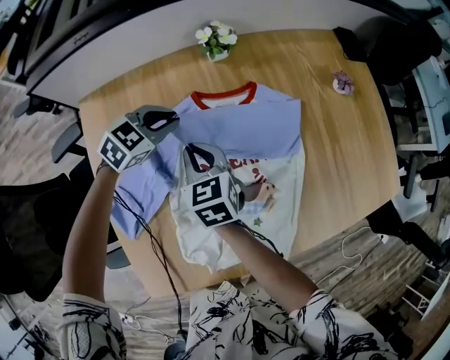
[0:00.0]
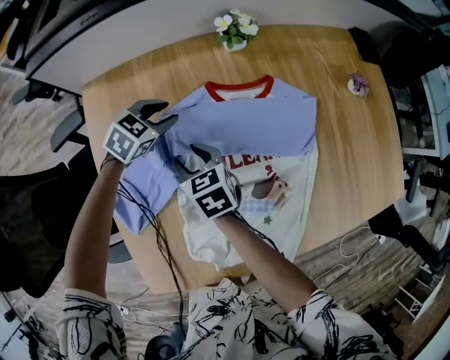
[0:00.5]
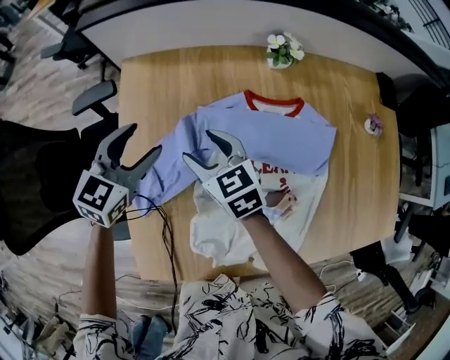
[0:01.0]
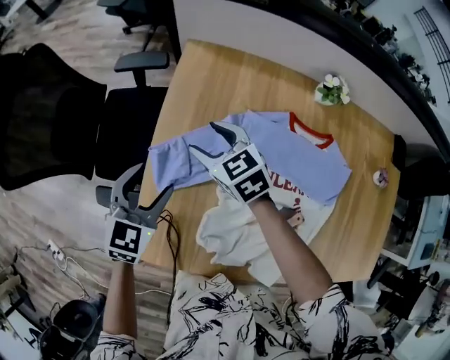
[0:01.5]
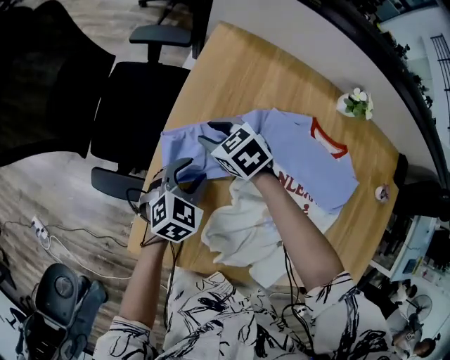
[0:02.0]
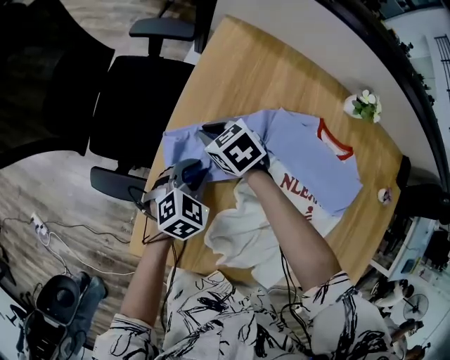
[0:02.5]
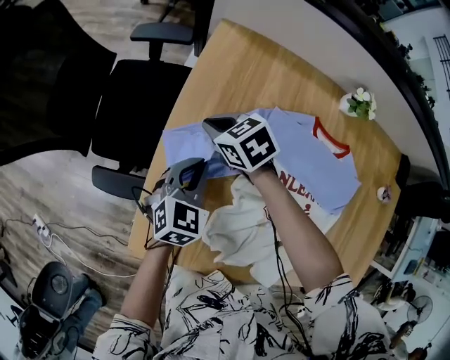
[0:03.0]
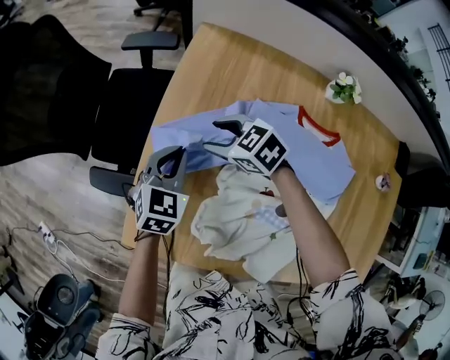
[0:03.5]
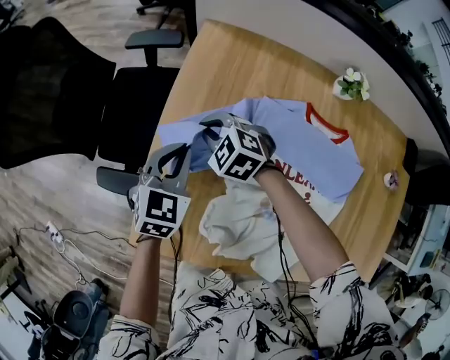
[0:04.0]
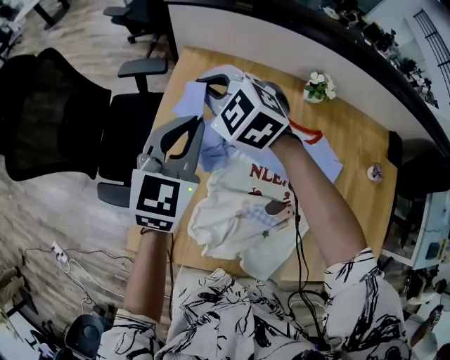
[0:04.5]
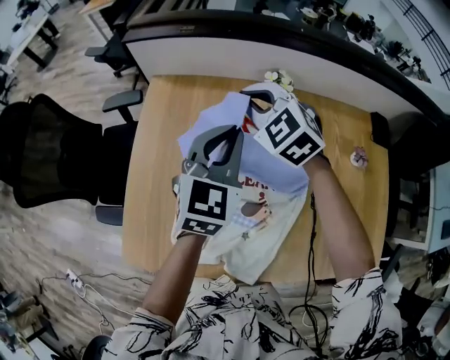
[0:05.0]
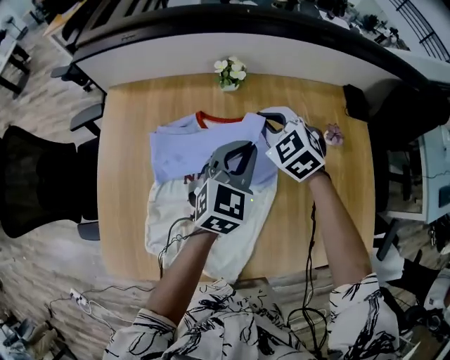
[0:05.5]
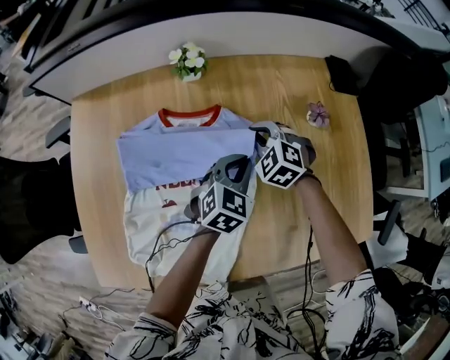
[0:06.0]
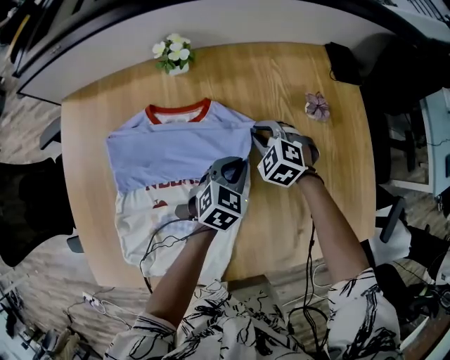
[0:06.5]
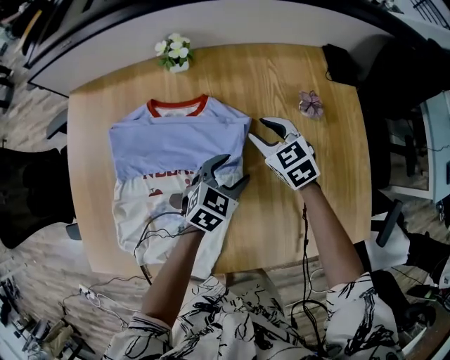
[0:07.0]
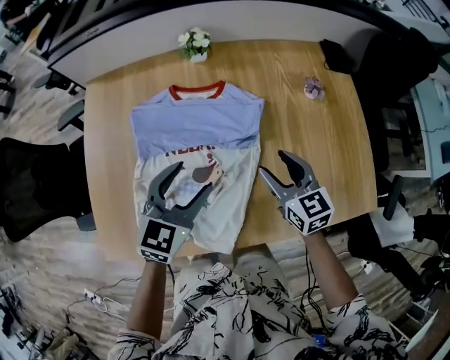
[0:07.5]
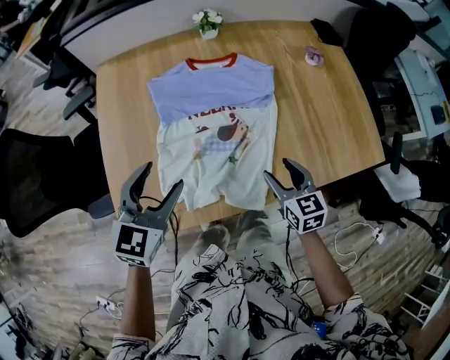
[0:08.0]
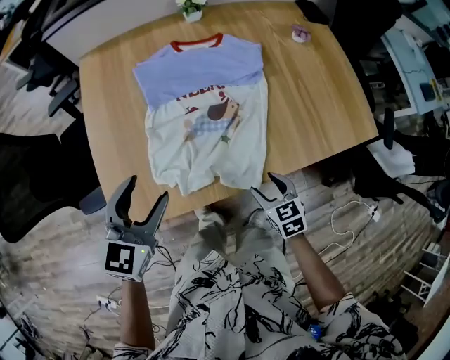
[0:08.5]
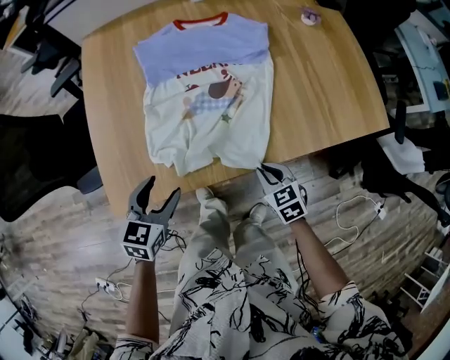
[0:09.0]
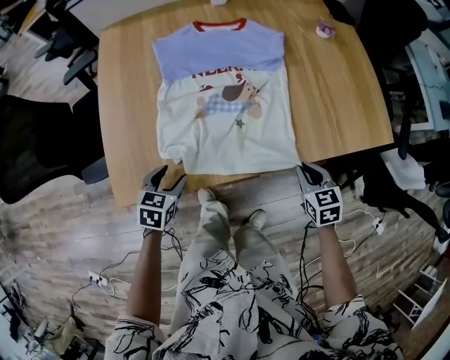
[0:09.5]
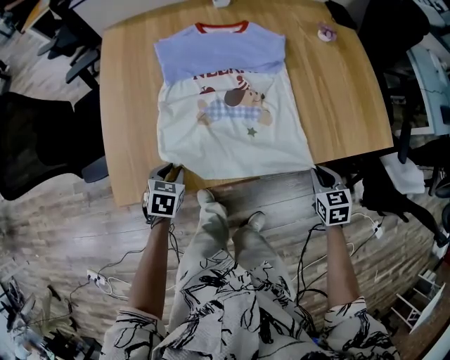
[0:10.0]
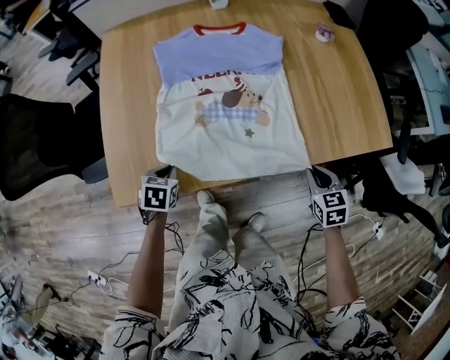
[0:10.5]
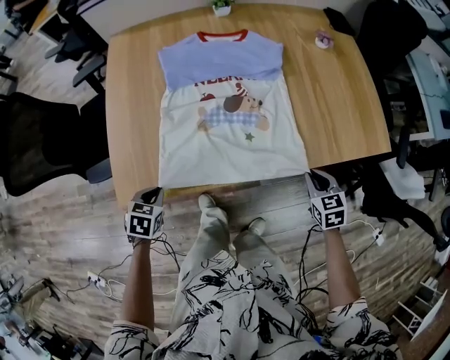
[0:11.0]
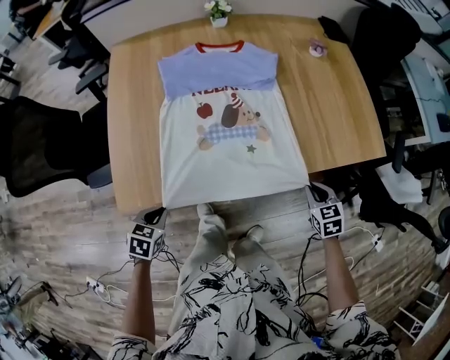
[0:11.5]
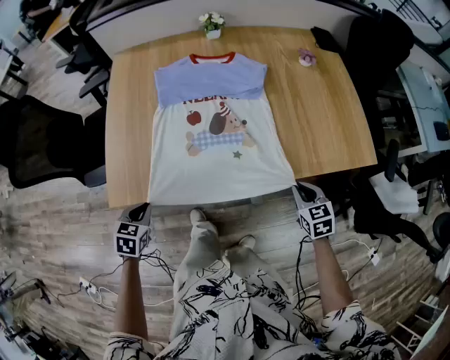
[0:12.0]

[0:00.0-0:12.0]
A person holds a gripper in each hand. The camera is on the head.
0:00.0 to 0:02.0: The left gripper swings up and down, roughly 15 cm each way, with 2 reversals, and turns by approximately 50 degrees. Meanwhile the right gripper goes up and down, about 10 cm each way, reversing 2 times, and changes its angle by some 60 degrees.
0:02.0 to 0:04.0: The left gripper shifts roughly 10 cm upward, and closes its fingers; the right gripper swivels approximately 30 degrees.
0:04.0 to 0:06.0: The two grippers travel together, roughly 60 cm. The left gripper changes its angle by some 30 degrees; the right gripper swivels roughly 30 degrees.
0:06.0 to 0:08.0: The left gripper heads to the left, backward and upward, covering roughly 40 cm, and opens, while the right gripper travels backward by some 35 cm, twists approximately 50 degrees clockwise, seen from behind, and opens.
0:08.0 to 0:10.0: The right gripper shifts some 20 cm to the right, backward and downward, changes its angle by roughly 20 degrees, and closes up; the left gripper moves downward, approximately 25 cm, tips its fingers downward by roughly 30 degrees, and closes.
0:10.0 to 0:12.0: The left gripper goes some 15 cm backward and upward.

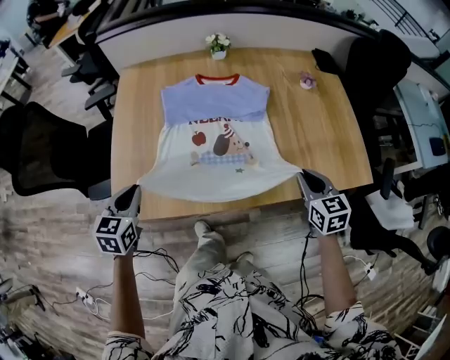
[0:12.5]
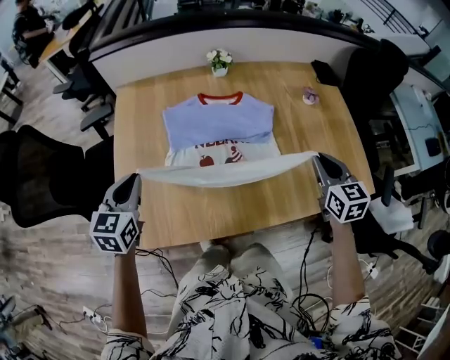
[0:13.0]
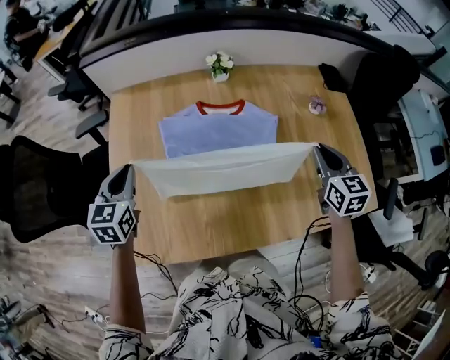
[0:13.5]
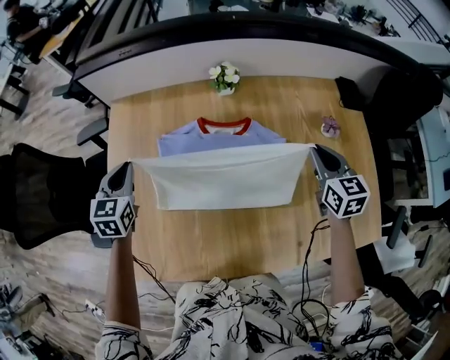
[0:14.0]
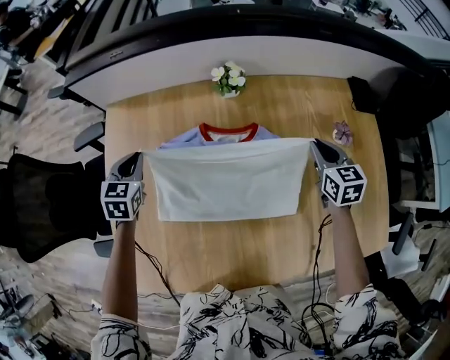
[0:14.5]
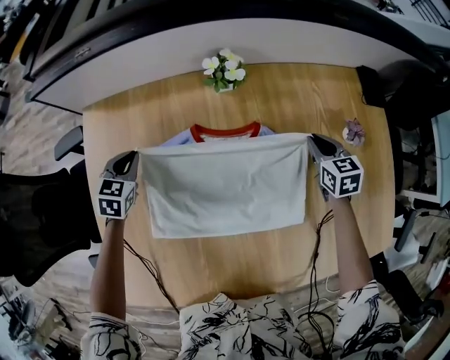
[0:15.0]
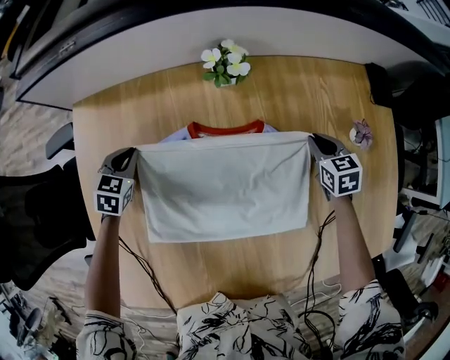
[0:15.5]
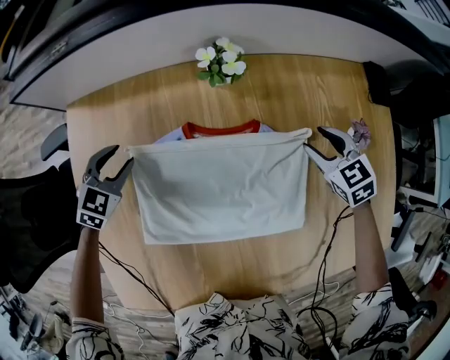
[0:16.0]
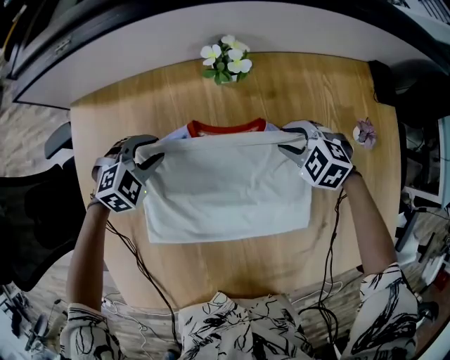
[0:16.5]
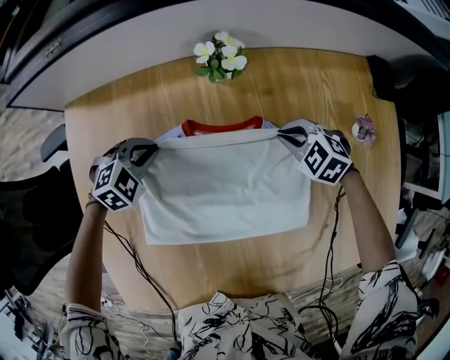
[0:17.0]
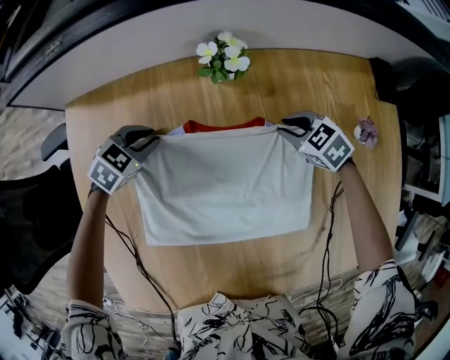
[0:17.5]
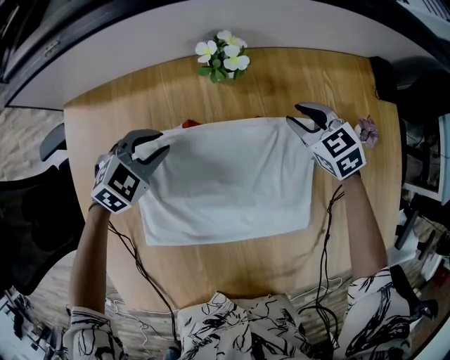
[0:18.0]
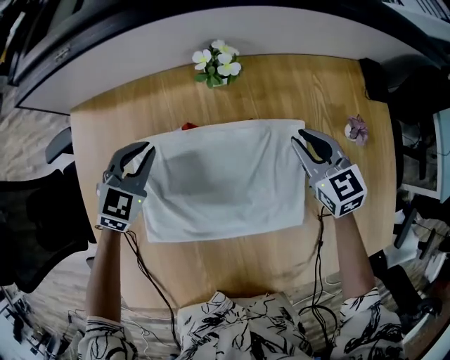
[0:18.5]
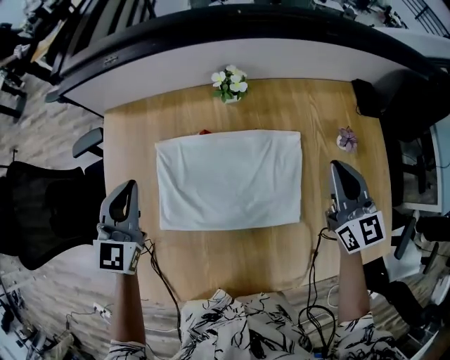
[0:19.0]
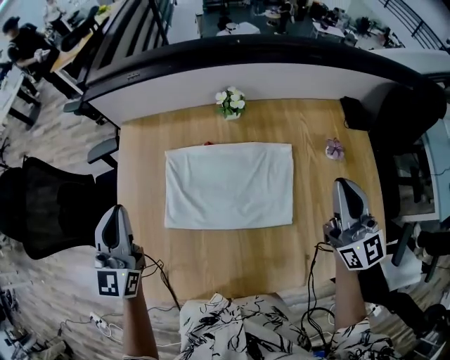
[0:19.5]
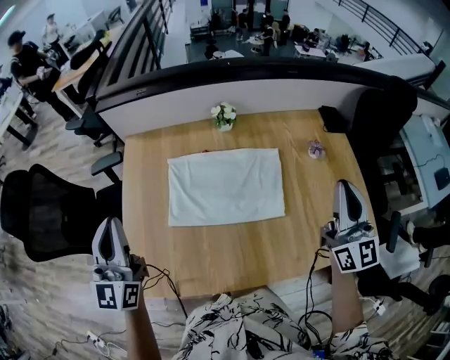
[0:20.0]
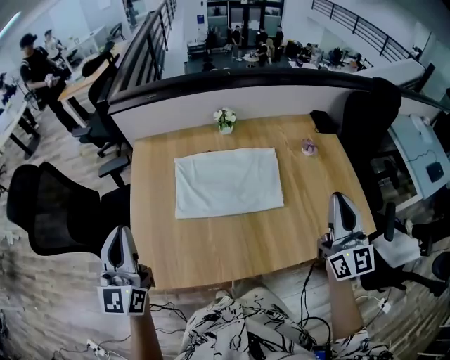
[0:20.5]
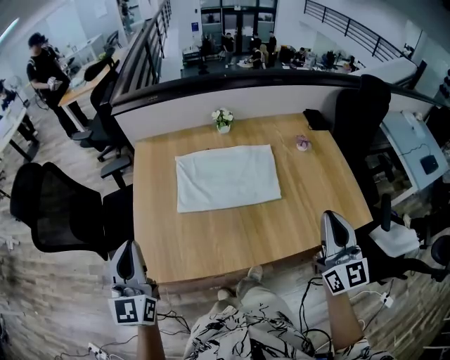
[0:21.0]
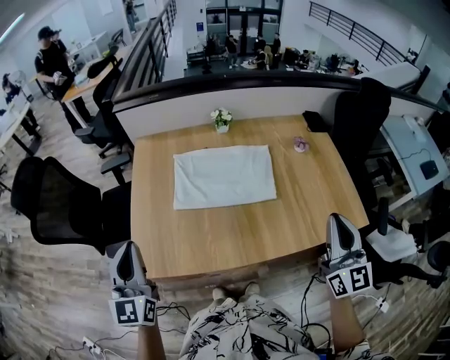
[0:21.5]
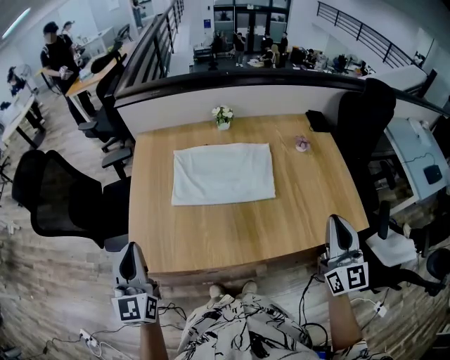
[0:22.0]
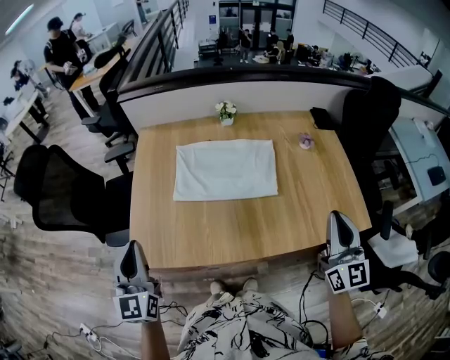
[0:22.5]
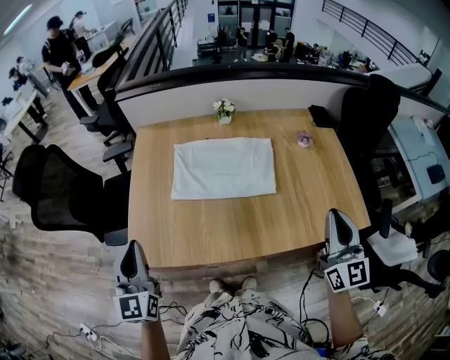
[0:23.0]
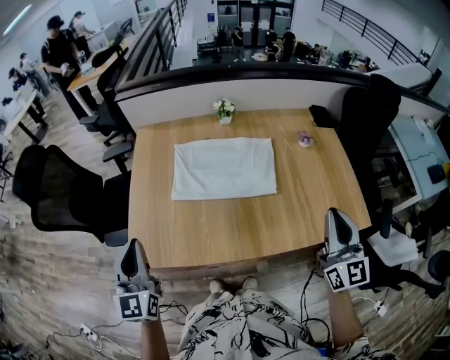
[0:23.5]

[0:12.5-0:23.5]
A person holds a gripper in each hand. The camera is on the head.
0:12.5 to 0:14.5: Both grippers are carried forward, approximately 40 cm.
0:14.5 to 0:16.0: The two grippers go some 10 cm downward and forward. The left gripper changes its angle by roughly 30 degrees, and opens; the right gripper turns by about 30 degrees, and opens.
0:16.0 to 0:18.0: The right gripper is displaced forward and to the left by some 10 cm; the left gripper moves to the right, about 10 cm, and rotates roughly 20 degrees.
0:18.0 to 0:20.0: The grippers both shift upward and backward by some 50 cm. The right gripper points its fingers approximately 60 degrees further upward; the left gripper tips its fingers upward by roughly 60 degrees.
0:20.0 to 0:21.5: Both grippers travel together backward, approximately 20 cm.
0:21.5 to 0:23.5: There are only small adjustments of the grippers.

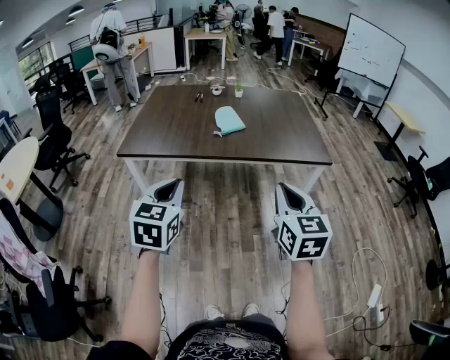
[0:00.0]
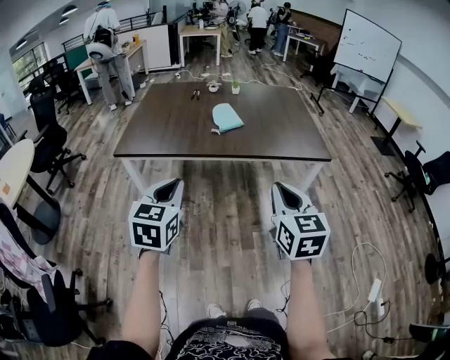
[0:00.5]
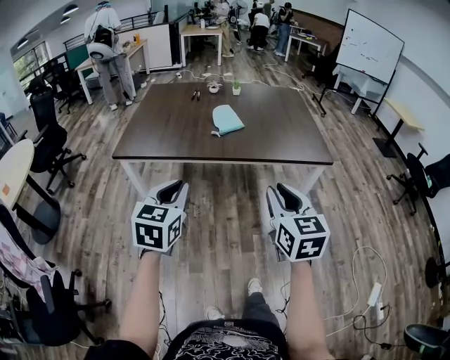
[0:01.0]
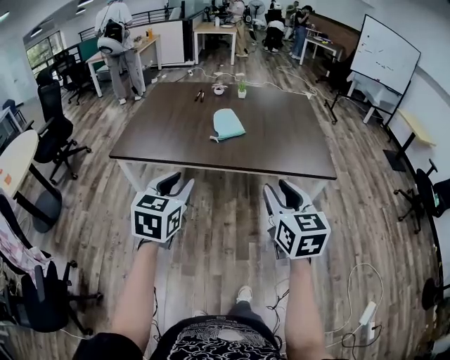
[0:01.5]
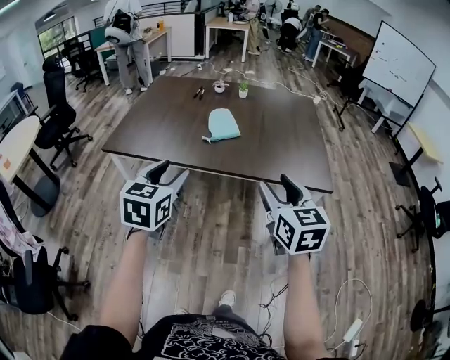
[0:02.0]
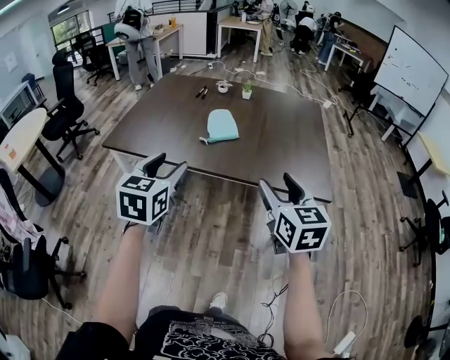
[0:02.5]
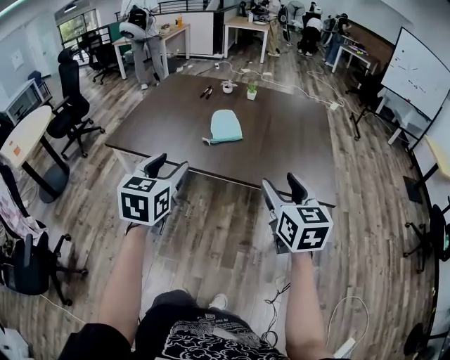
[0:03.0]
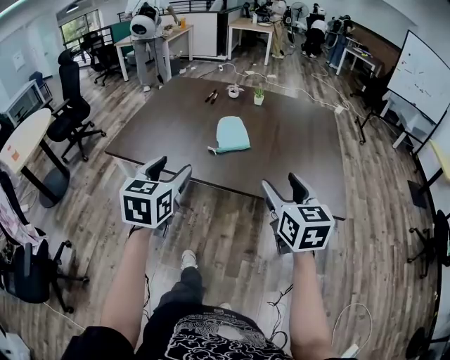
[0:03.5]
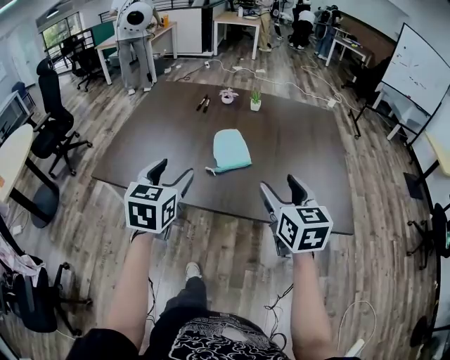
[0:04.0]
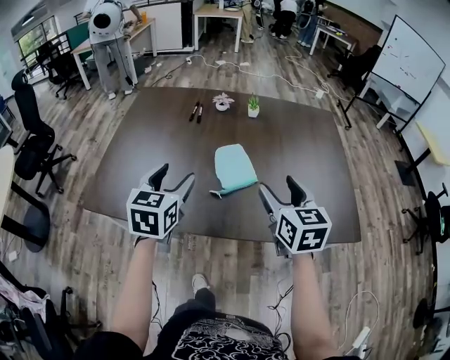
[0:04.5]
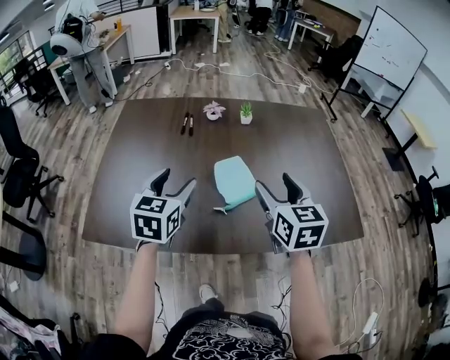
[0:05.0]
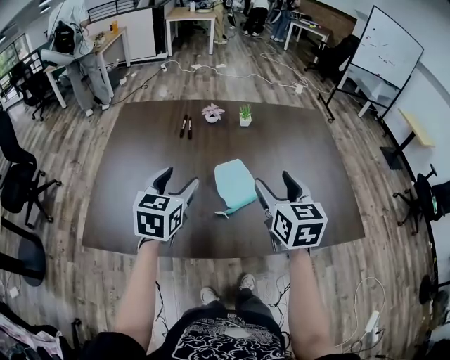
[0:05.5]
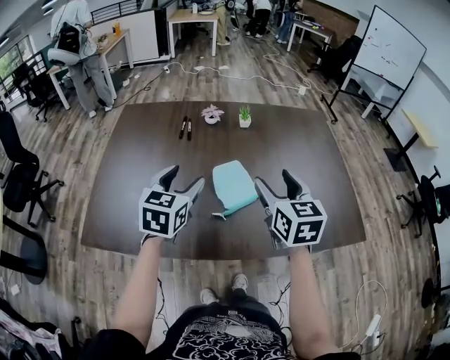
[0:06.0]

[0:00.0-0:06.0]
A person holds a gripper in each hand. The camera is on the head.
0:00.0 to 0:02.0: Both grippers travel together forward and to the right, about 20 cm. The left gripper opens up. Meanwhile the right gripper opens its fingers.
0:02.0 to 0:04.0: The two grippers go approximately 20 cm forward.
0:04.0 to 0:06.0: The right gripper is displaced forward and to the left by approximately 20 cm, while the left gripper travels forward by approximately 20 cm.
